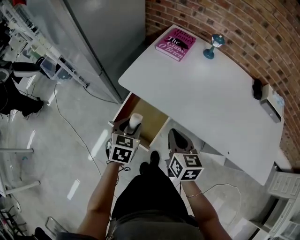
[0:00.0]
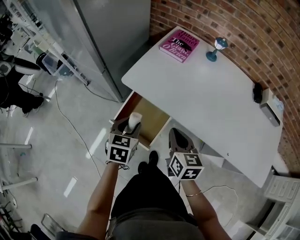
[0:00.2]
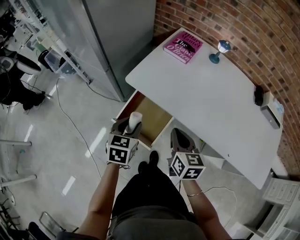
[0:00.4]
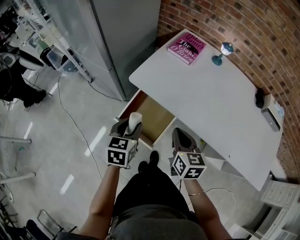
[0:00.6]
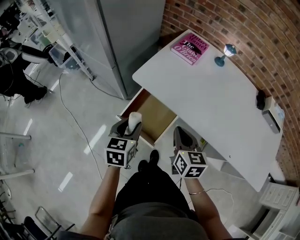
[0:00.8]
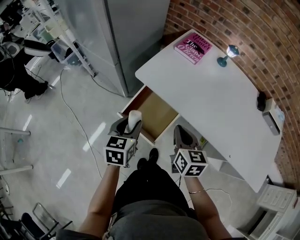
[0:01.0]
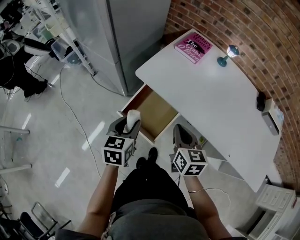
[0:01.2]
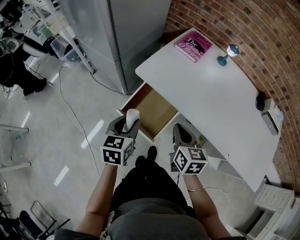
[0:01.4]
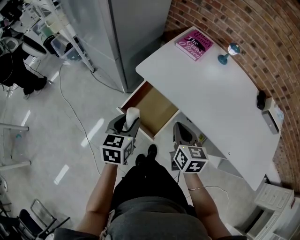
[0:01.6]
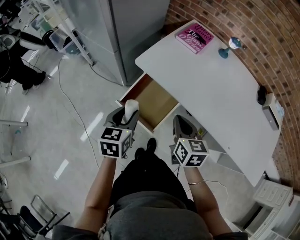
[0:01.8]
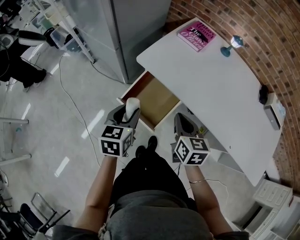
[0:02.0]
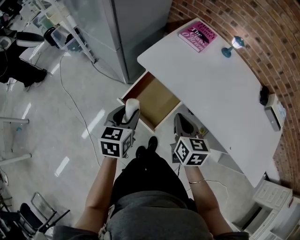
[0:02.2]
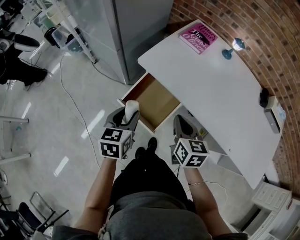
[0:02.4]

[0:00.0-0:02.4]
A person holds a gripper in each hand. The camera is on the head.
0:00.0 to 0:01.2: The left gripper is displaced to the left by roughly 5 cm, and rotates approximately 20 degrees.
0:01.2 to 0:02.4: Both grippers stay about where they are.

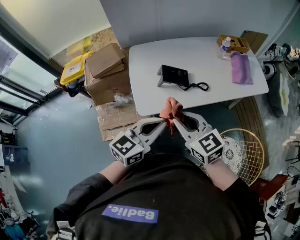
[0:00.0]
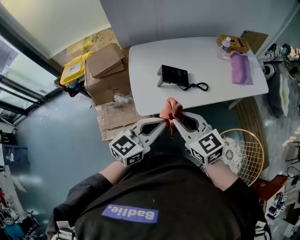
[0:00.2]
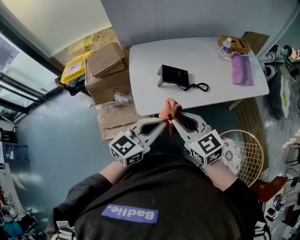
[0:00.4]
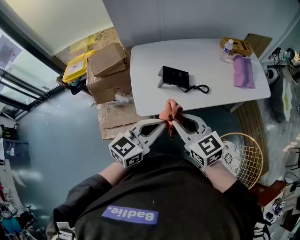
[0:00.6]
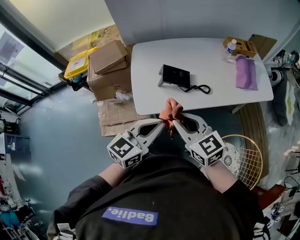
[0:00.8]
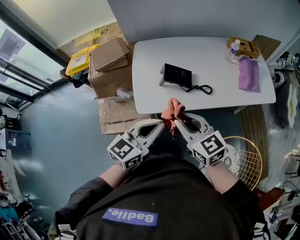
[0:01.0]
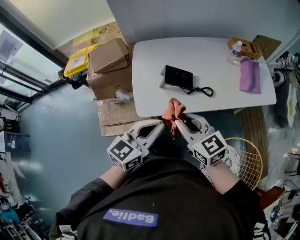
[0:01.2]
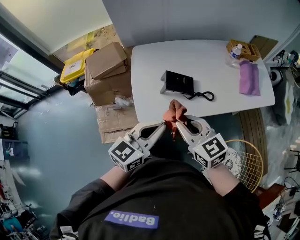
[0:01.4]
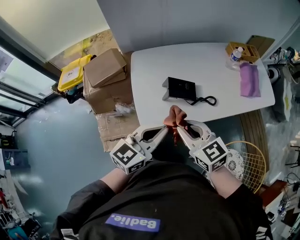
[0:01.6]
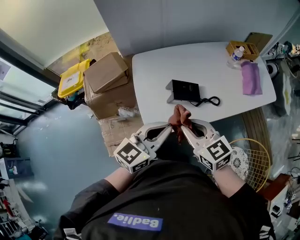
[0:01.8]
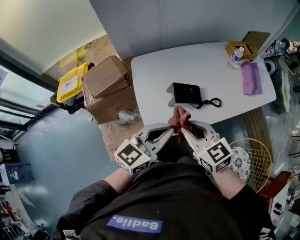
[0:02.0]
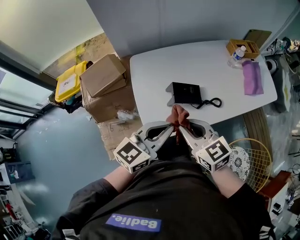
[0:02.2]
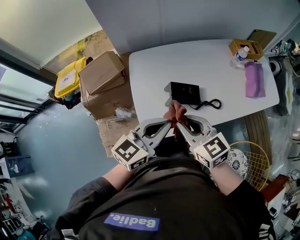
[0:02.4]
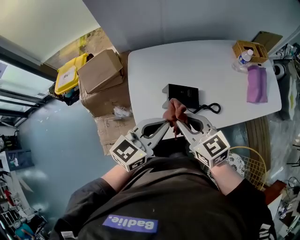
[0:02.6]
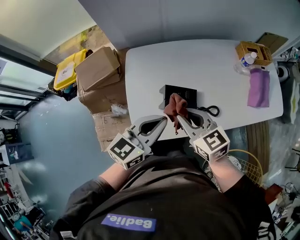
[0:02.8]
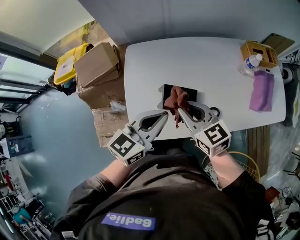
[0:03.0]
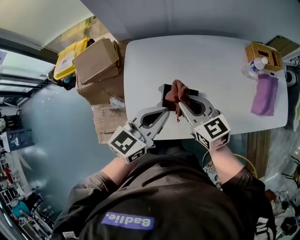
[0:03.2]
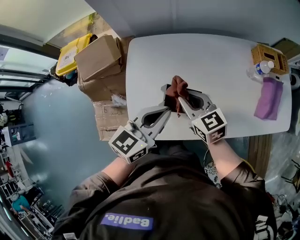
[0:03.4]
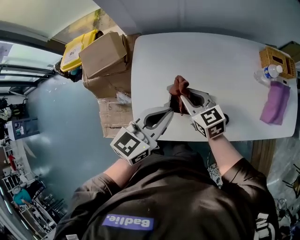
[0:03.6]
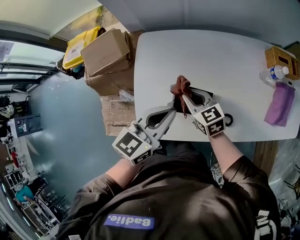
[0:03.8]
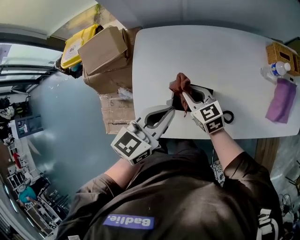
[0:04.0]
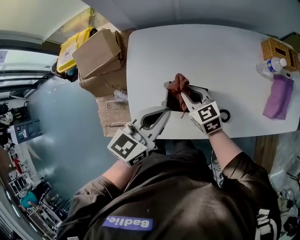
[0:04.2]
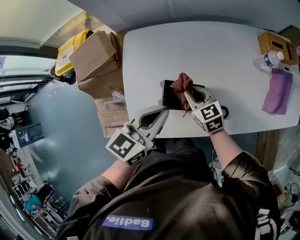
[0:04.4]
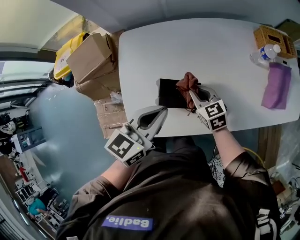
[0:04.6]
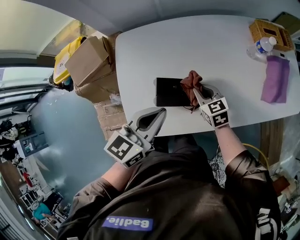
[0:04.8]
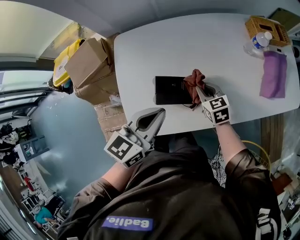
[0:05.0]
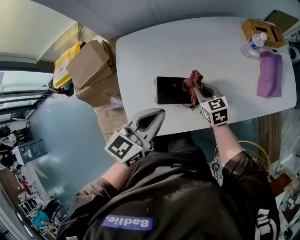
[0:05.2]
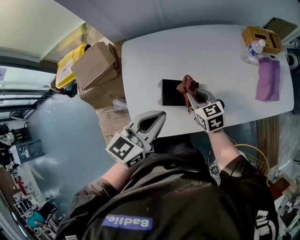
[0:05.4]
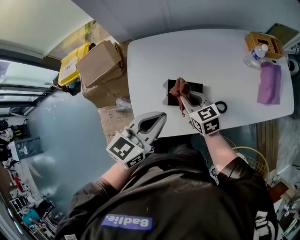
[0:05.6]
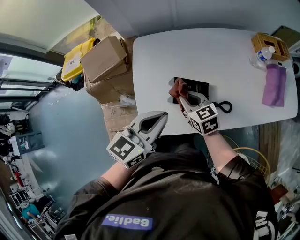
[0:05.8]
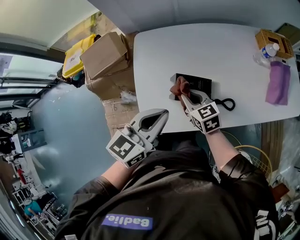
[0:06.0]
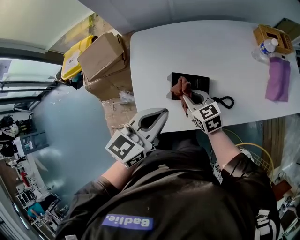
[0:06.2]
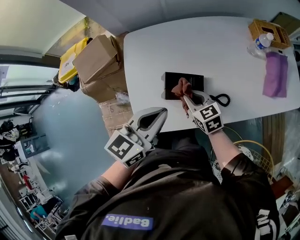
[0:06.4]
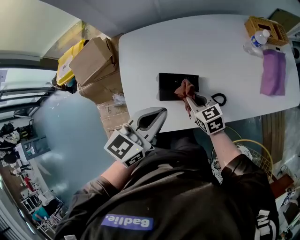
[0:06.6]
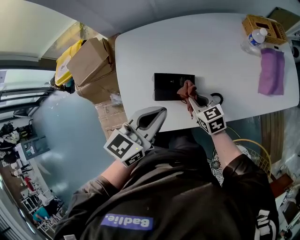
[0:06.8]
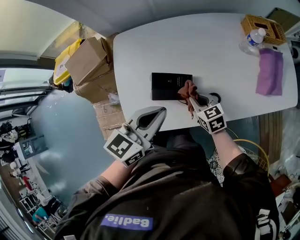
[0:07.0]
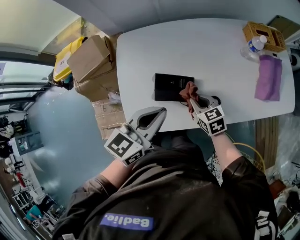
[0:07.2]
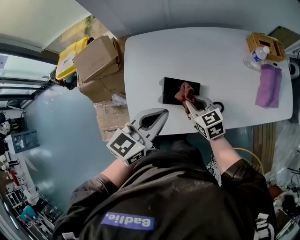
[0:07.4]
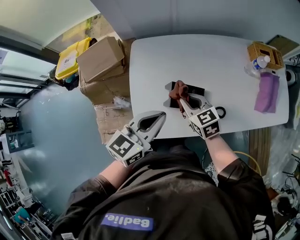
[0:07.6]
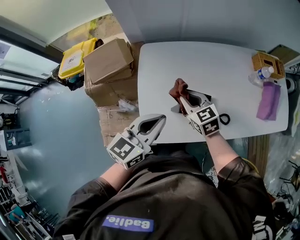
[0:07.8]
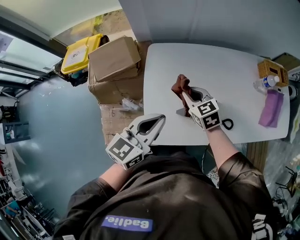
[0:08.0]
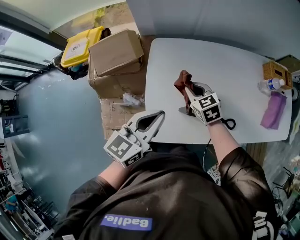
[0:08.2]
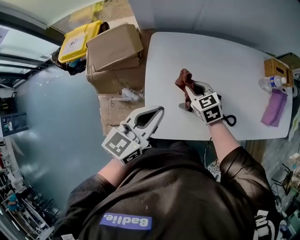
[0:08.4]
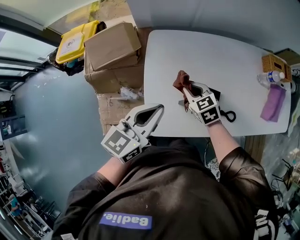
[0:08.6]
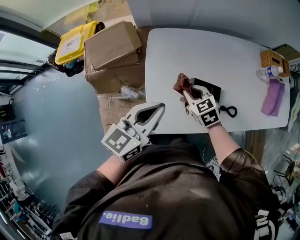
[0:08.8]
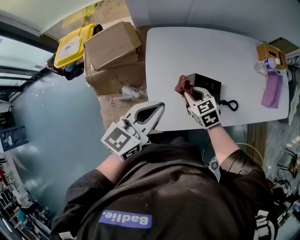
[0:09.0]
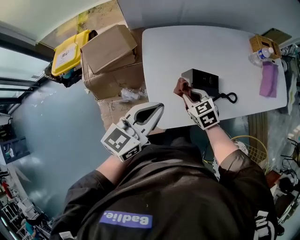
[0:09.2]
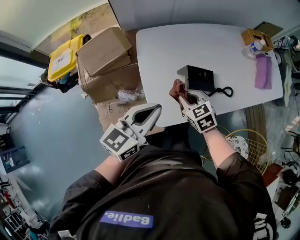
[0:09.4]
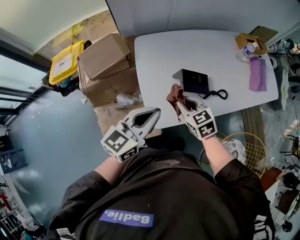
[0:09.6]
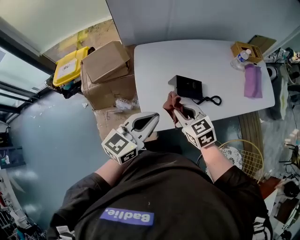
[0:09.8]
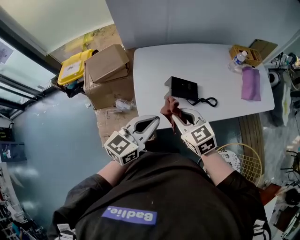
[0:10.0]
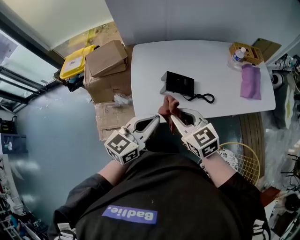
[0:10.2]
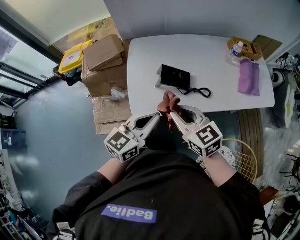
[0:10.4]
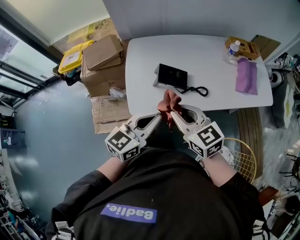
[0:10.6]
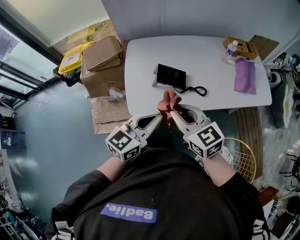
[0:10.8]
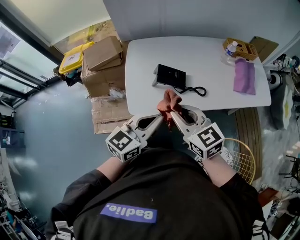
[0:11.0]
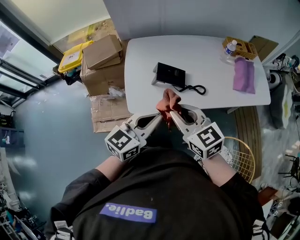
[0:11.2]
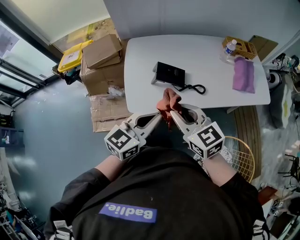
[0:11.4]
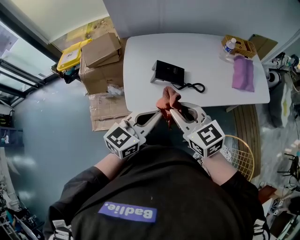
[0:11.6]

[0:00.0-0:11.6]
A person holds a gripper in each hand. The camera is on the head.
0:00.0 to 0:01.4: Both grippers travel together forward, approximately 5 cm.
0:01.4 to 0:02.8: The two grippers go some 15 cm forward.
0:02.8 to 0:04.4: The left gripper shifts roughly 10 cm forward and downward. The right gripper moves downward and forward, approximately 20 cm.
0:04.4 to 0:05.8: The right gripper reaches about 10 cm to the right, then returns. The left gripper heads backward, covering roughly 5 cm.
0:05.8 to 0:07.2: The right gripper shifts some 15 cm to the right and downward; the left gripper goes some 5 cm to the right.
0:07.2 to 0:08.8: Both grippers travel together to the left, some 20 cm.
0:08.8 to 0:10.2: The left gripper heads backward and to the right, covering roughly 20 cm. The right gripper shifts some 25 cm backward and upward, and rotates approximately 20 degrees.
0:10.2 to 0:11.6: The right gripper heads to the right and backward, covering some 5 cm. The left gripper goes roughly 5 cm to the right.

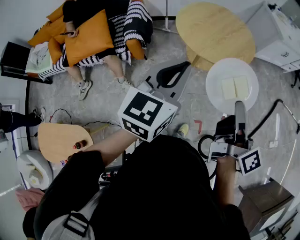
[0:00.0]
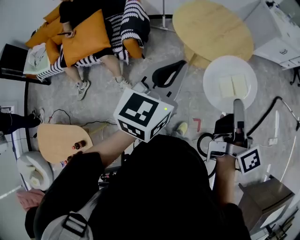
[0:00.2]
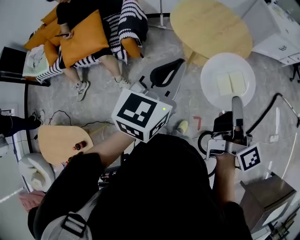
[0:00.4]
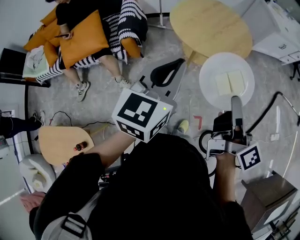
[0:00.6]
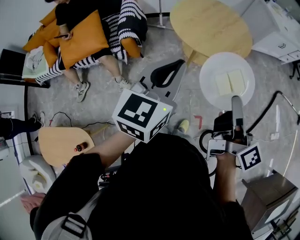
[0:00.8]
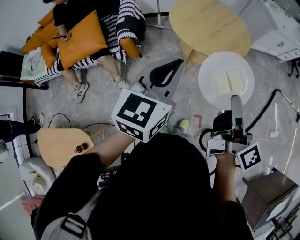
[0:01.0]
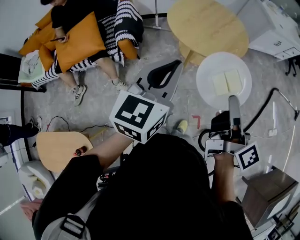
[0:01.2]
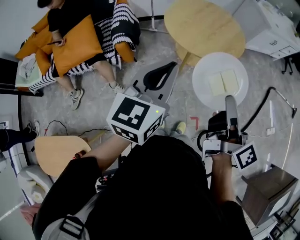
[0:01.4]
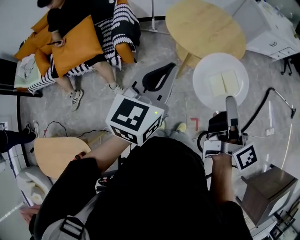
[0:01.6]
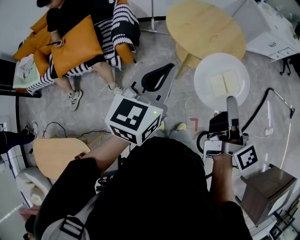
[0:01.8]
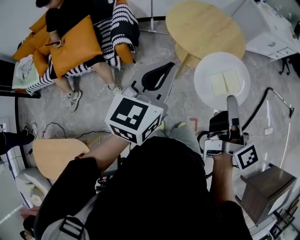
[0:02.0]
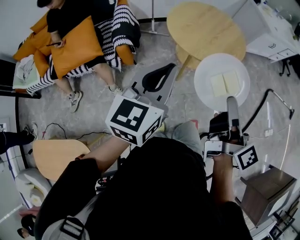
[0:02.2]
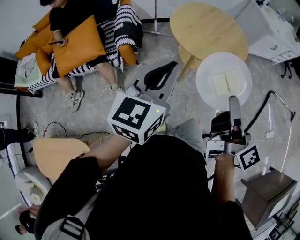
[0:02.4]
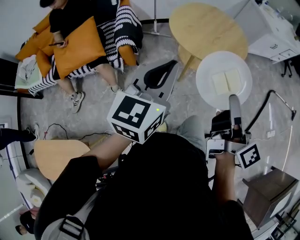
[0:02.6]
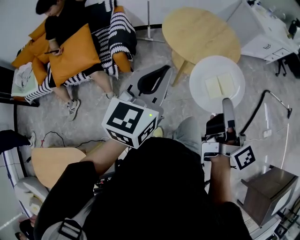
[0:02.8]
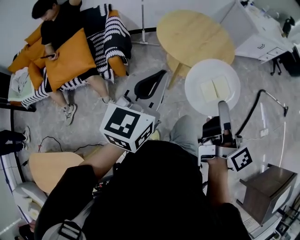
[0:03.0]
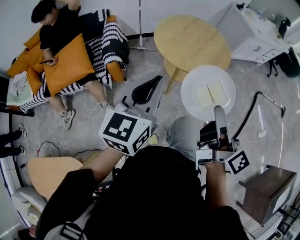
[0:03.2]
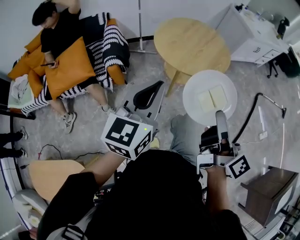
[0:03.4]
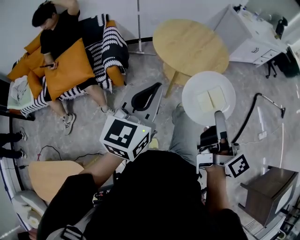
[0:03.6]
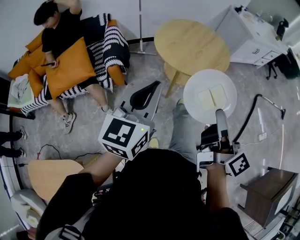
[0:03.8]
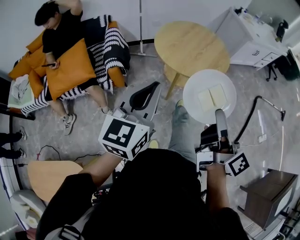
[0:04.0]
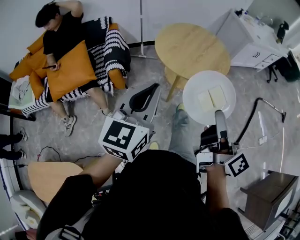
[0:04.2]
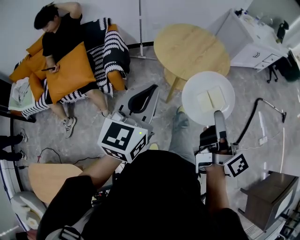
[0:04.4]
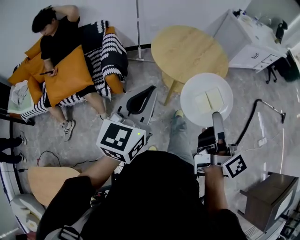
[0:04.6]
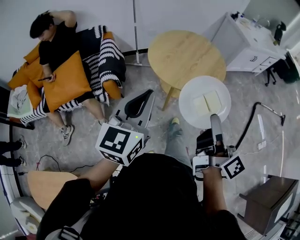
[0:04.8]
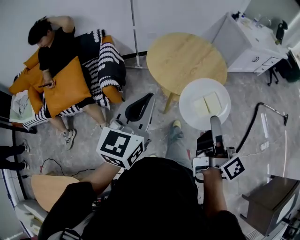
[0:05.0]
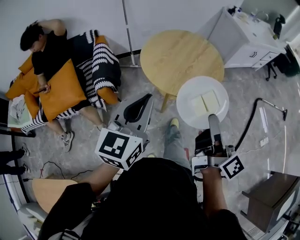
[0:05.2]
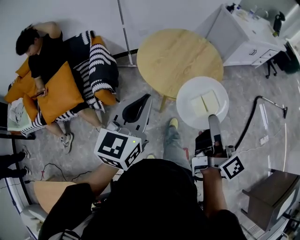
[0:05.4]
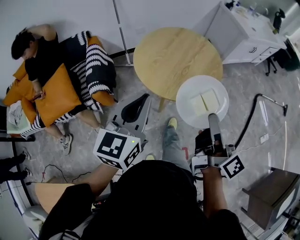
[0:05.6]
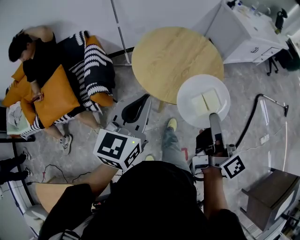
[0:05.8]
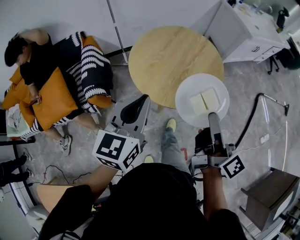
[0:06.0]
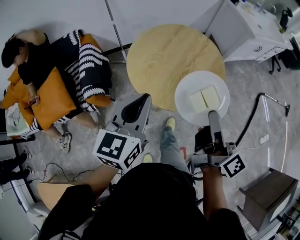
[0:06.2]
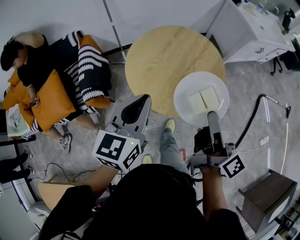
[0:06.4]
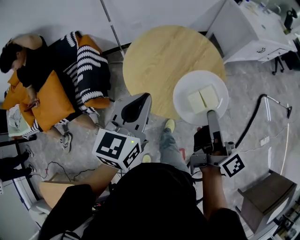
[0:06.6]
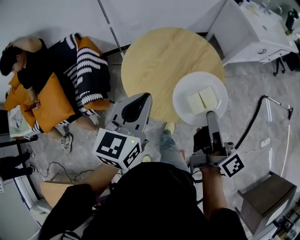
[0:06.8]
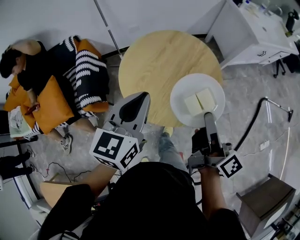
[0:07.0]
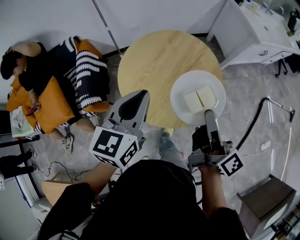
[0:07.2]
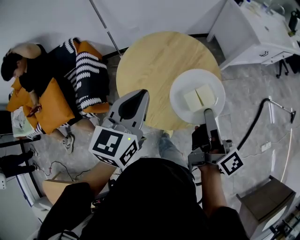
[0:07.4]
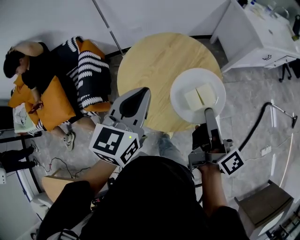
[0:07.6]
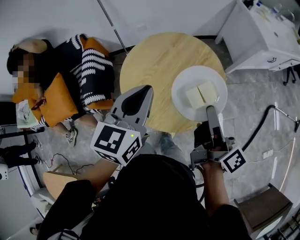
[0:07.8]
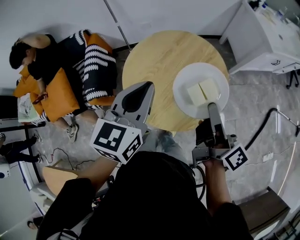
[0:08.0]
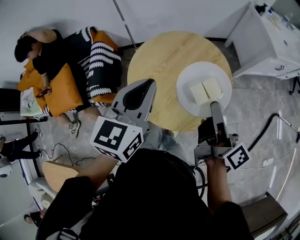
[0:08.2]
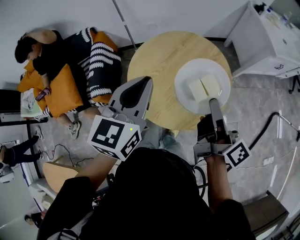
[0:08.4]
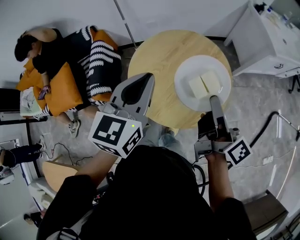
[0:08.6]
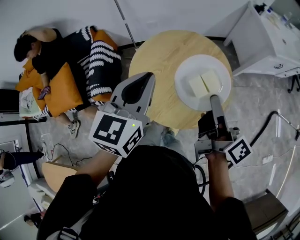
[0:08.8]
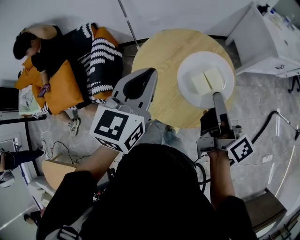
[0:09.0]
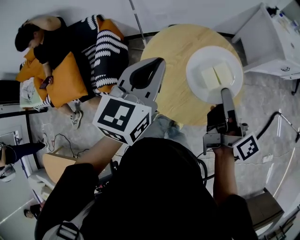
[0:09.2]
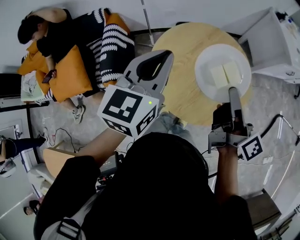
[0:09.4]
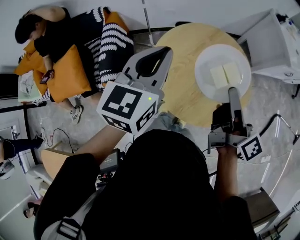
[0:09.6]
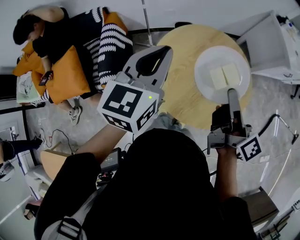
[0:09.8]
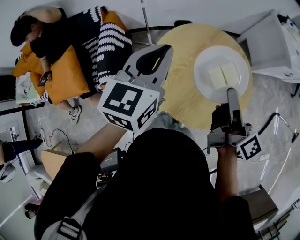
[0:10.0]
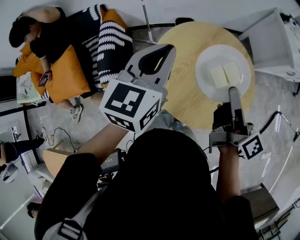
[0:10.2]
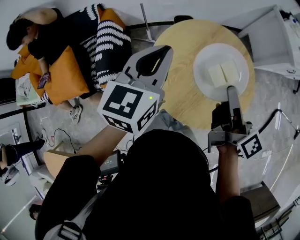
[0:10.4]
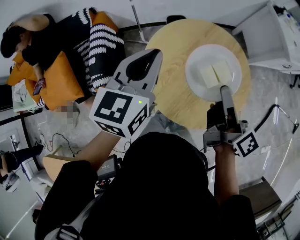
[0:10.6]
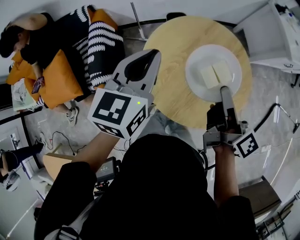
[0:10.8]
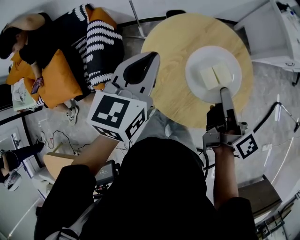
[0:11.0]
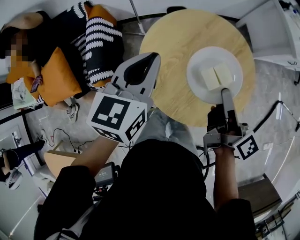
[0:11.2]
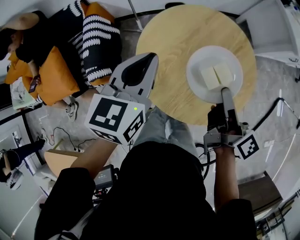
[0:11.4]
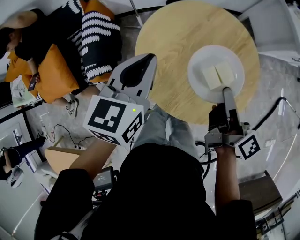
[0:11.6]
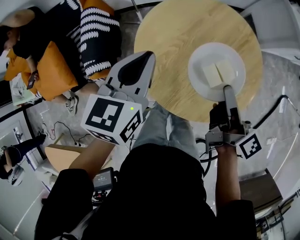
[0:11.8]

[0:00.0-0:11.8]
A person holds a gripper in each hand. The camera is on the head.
0:00.0 to 0:01.4: The right gripper is displaced to the left by some 5 cm.
0:01.4 to 0:04.4: There are only small adjustments of the grippers.
0:04.4 to 0:06.0: The grippers both shift forward by approximately 20 cm.
0:06.0 to 0:07.4: The two grippers go some 15 cm forward and to the right.
0:07.4 to 0:08.8: The right gripper moves roughly 5 cm.
0:08.8 to 0:10.4: Both grippers move to the left and forward, approximately 10 cm.
0:10.4 to 0:11.8: Both grippers travel together downward, some 10 cm.
